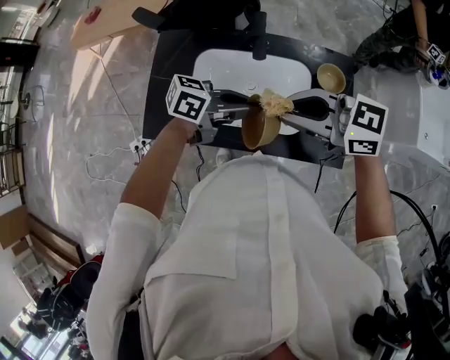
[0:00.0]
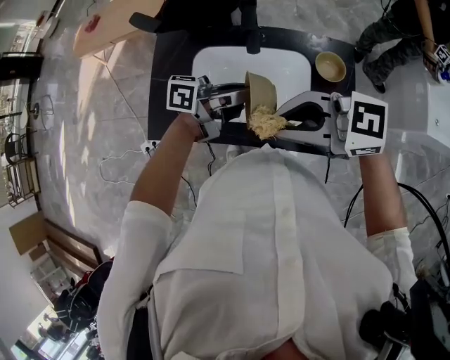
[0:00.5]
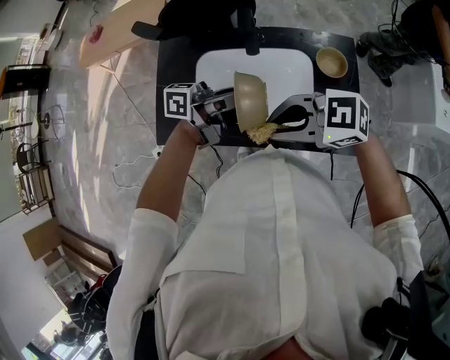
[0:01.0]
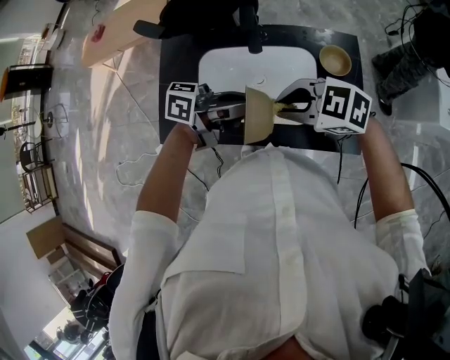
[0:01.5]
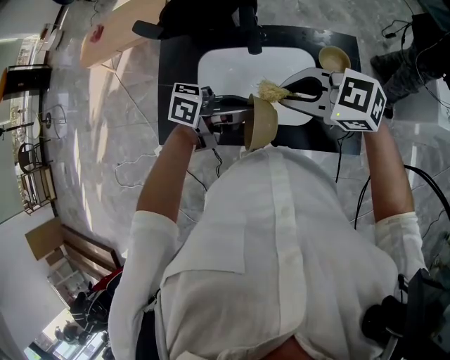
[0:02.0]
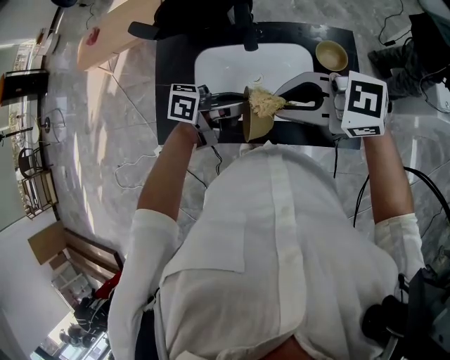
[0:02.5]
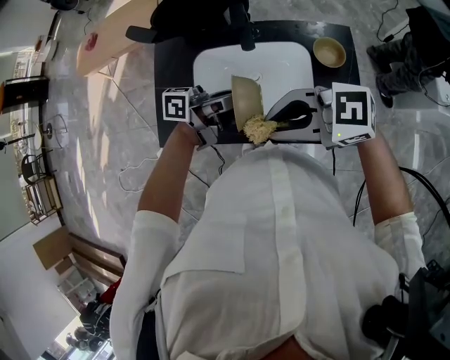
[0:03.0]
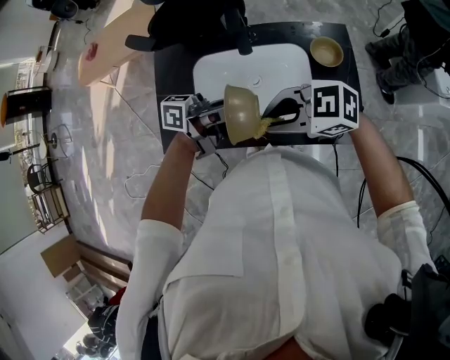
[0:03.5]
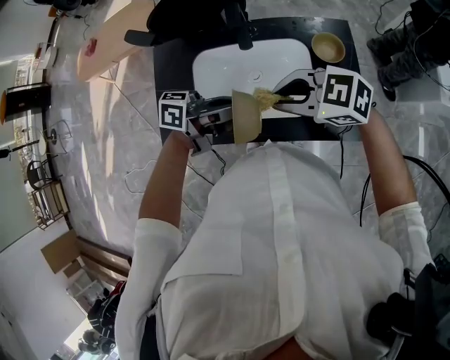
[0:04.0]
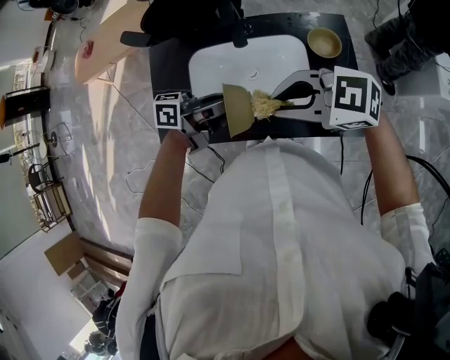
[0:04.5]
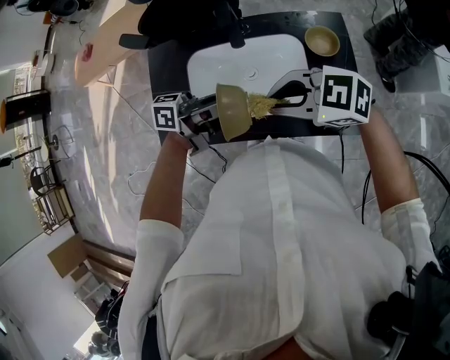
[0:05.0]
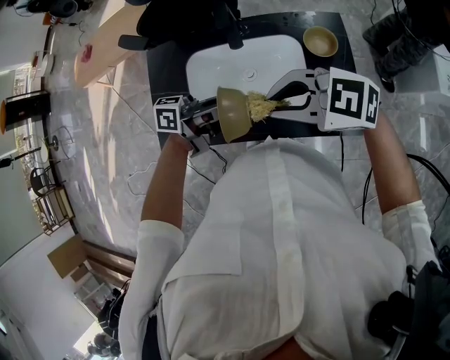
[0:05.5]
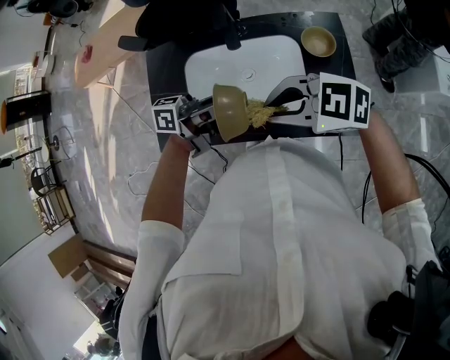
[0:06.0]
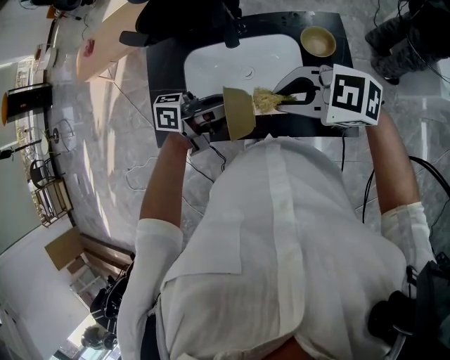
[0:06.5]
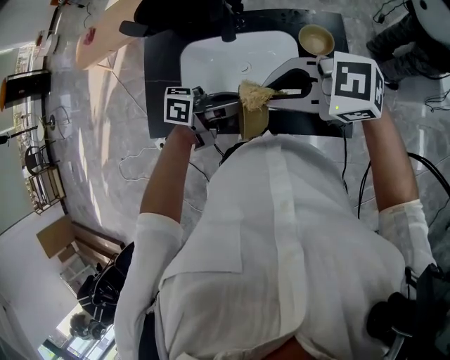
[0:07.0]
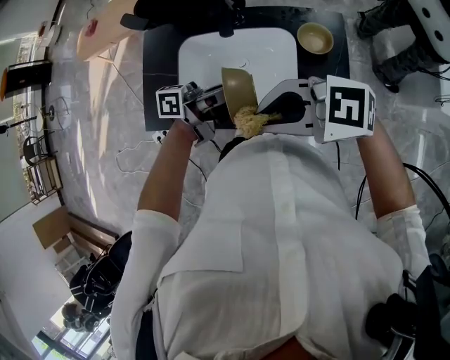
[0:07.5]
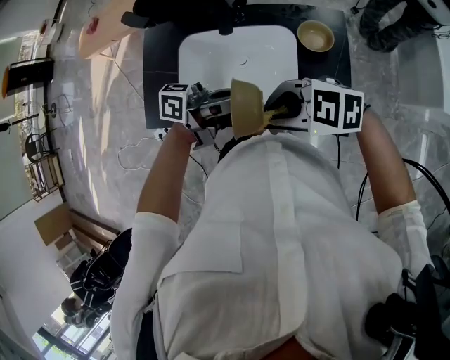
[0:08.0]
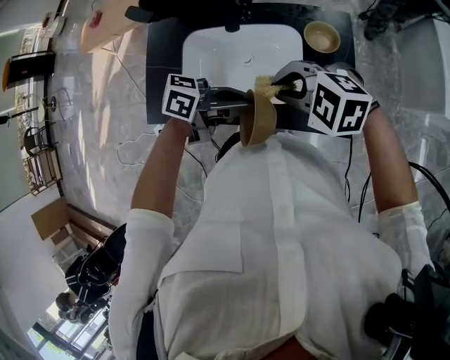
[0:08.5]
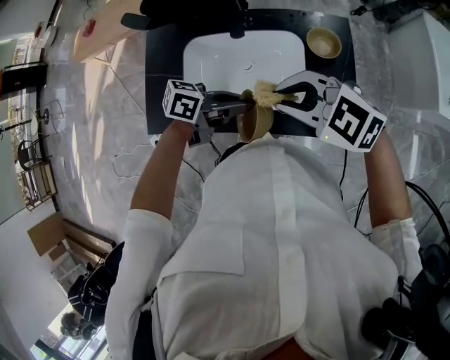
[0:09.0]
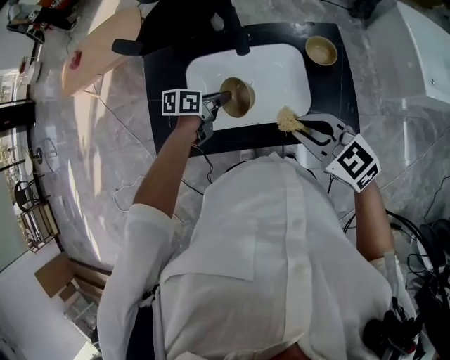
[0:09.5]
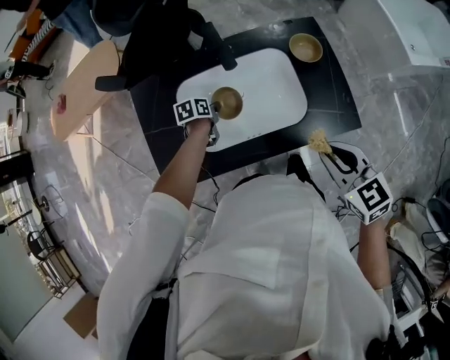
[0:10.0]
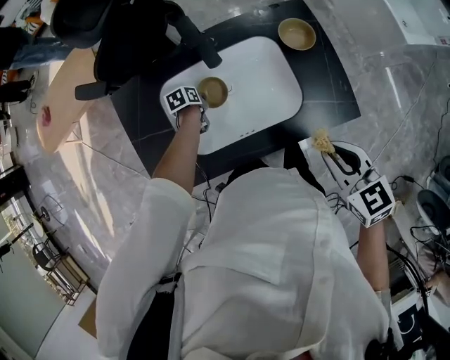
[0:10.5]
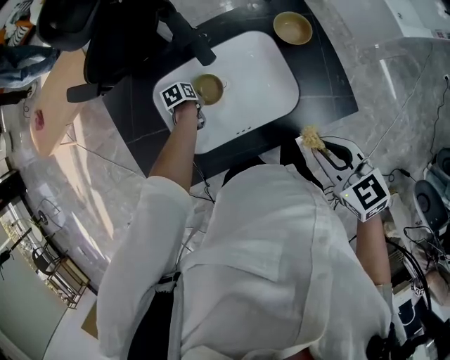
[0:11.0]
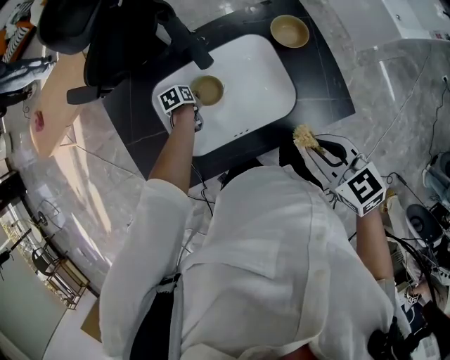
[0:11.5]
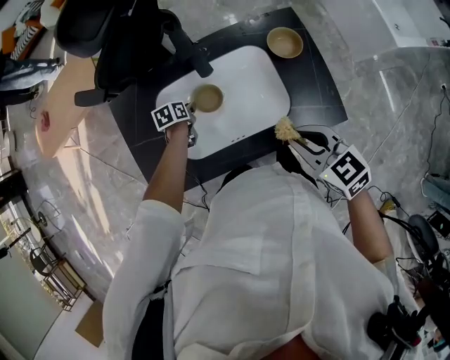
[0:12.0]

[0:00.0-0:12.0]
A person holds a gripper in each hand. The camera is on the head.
0:04.0 to 0:06.0: The grippers make only small movements.
0:06.0 to 0:08.0: The left gripper ends up roughly 10 cm from where it was, while the right gripper moves about 10 cm.
0:08.0 to 0:10.0: The right gripper rotates roughly 80 degrees, while the left gripper shifts some 30 cm downward, and angles its fingers downward, by about 60 degrees.
0:10.0 to 0:12.0: The left gripper moves approximately 10 cm downward and comes back. The right gripper changes place by roughly 5 cm.

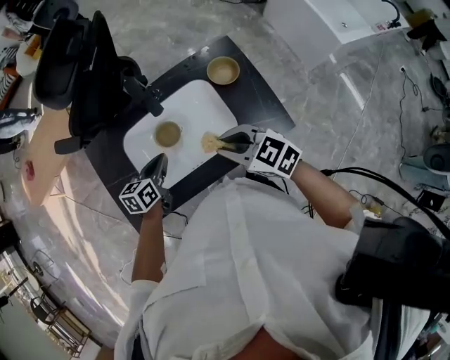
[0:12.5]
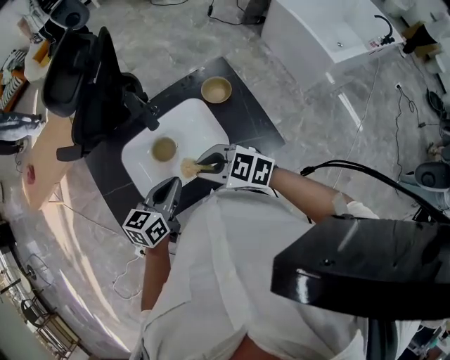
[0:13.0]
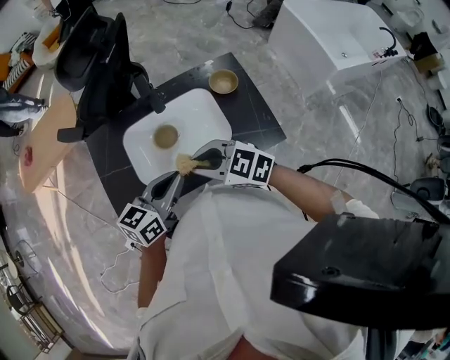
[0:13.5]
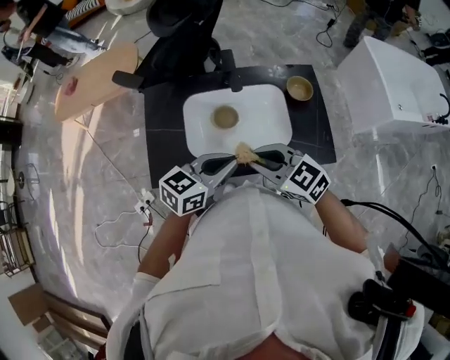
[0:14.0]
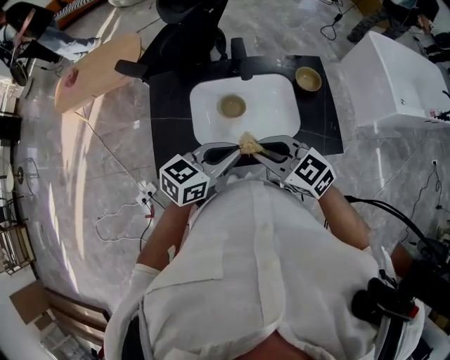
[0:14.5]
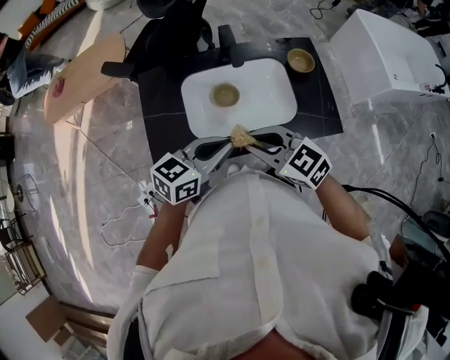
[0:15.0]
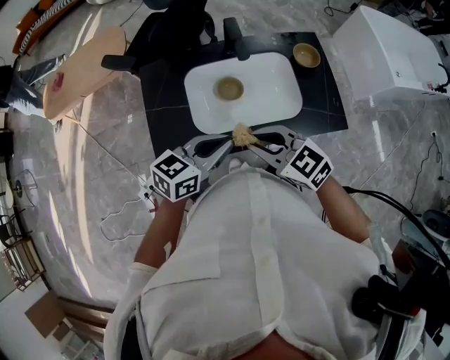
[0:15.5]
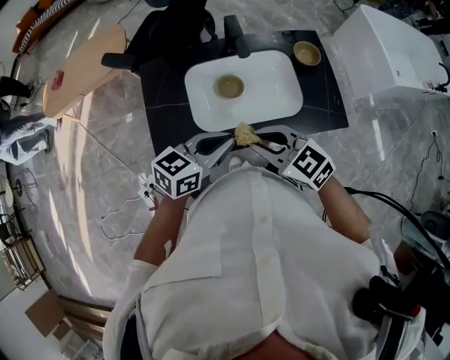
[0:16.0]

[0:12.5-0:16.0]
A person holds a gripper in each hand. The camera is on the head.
0:12.5 to 0:14.5: The left gripper goes some 20 cm upward and backward, and swivels roughly 30 degrees, while the right gripper is displaced to the left and backward by approximately 15 cm.
0:14.5 to 0:16.0: The grippers make only small movements.

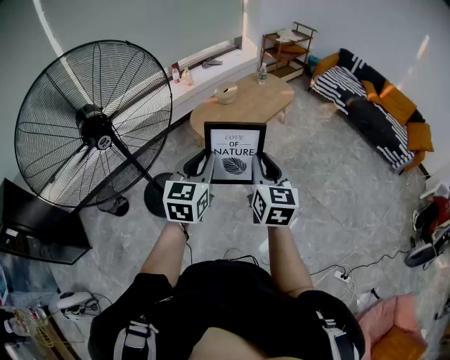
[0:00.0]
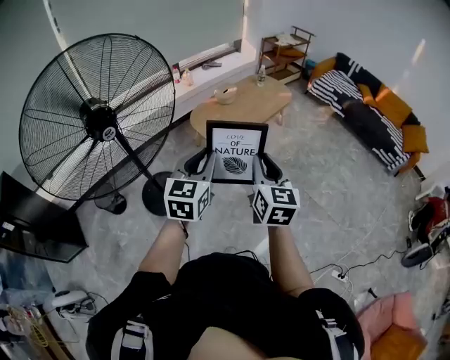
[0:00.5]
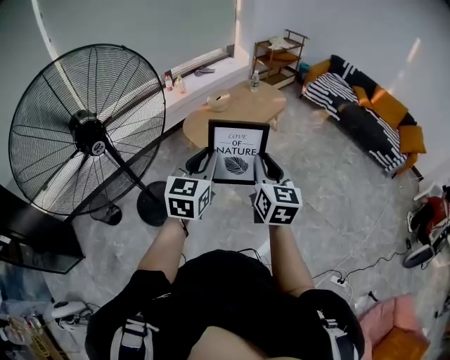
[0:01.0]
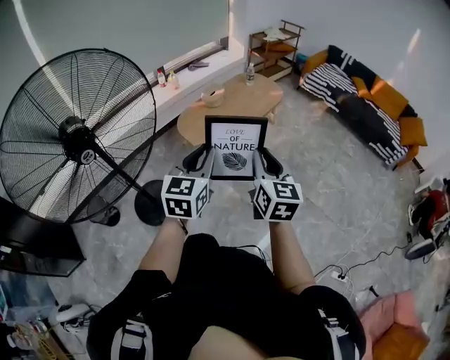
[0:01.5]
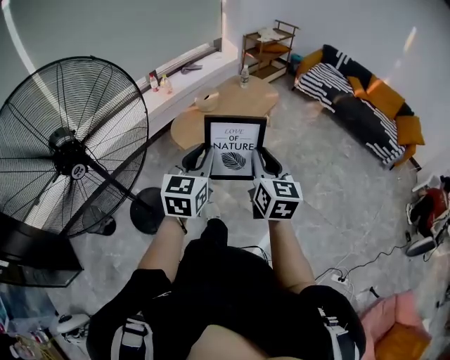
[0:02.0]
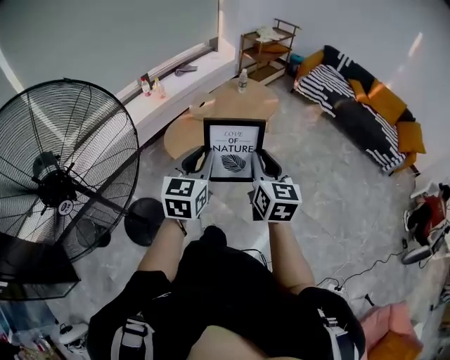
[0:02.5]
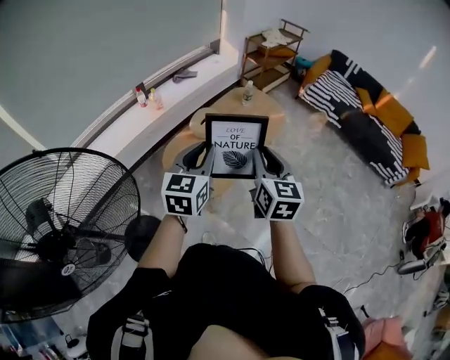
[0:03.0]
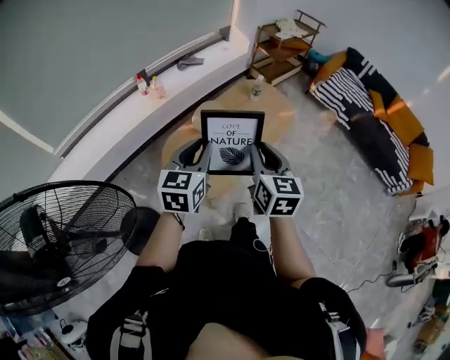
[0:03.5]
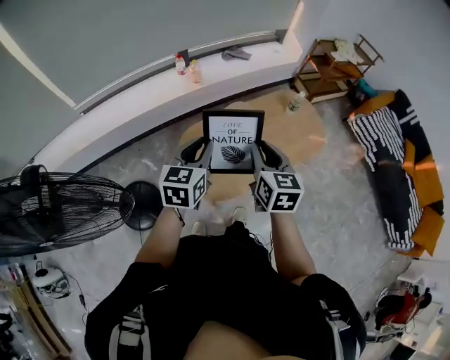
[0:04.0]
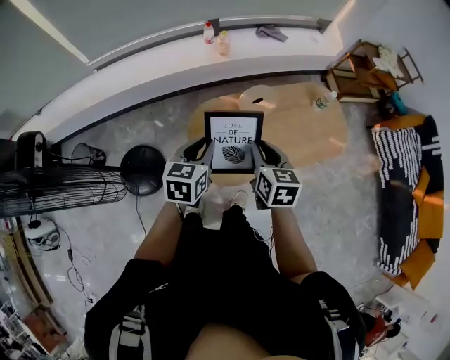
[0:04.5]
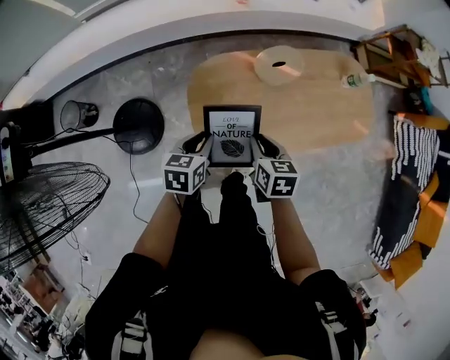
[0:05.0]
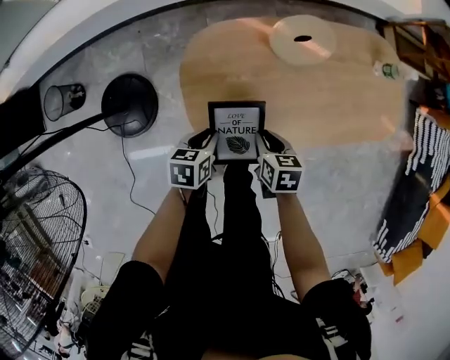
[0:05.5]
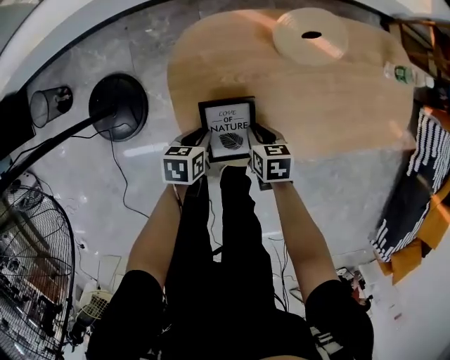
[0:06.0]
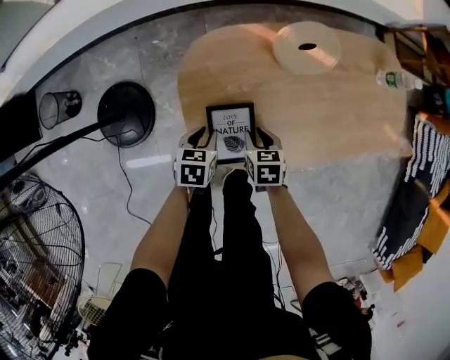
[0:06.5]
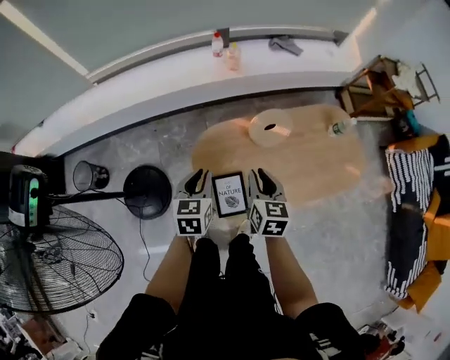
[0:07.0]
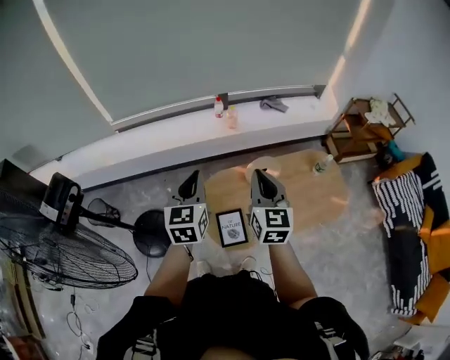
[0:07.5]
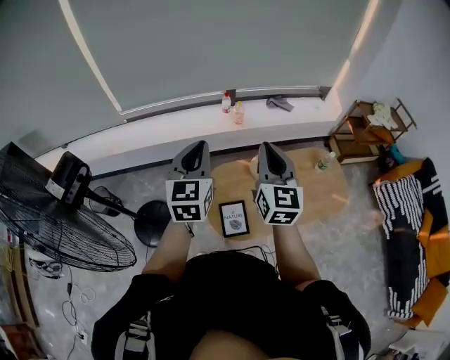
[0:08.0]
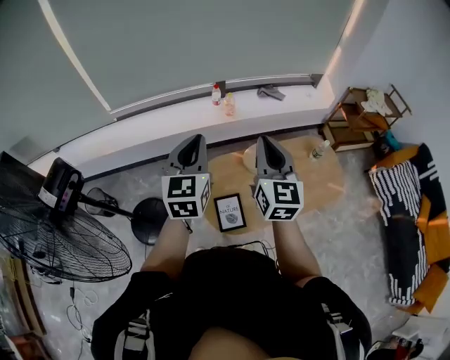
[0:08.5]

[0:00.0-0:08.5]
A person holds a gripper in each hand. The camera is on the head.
0:00.0 to 0:02.0: The two grippers go approximately 10 cm forward.
0:02.0 to 0:04.0: The pair of grippers is taken forward, about 60 cm. The right gripper rotates about 30 degrees; the left gripper swivels roughly 30 degrees.
0:04.0 to 0:06.5: Both grippers travel together downward, about 60 cm. The left gripper tilts its fingers some 40 degrees downward. Meanwhile the right gripper tilts its fingers roughly 40 degrees downward.
0:06.5 to 0:08.5: Both grippers travel together upward, some 70 cm. The left gripper angles its fingers upward, by some 50 degrees, and closes its fingers, while the right gripper tilts its fingers roughly 60 degrees upward, and closes its fingers.

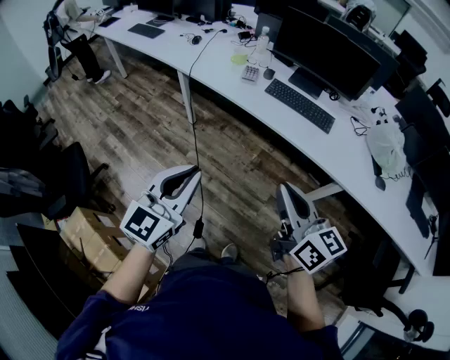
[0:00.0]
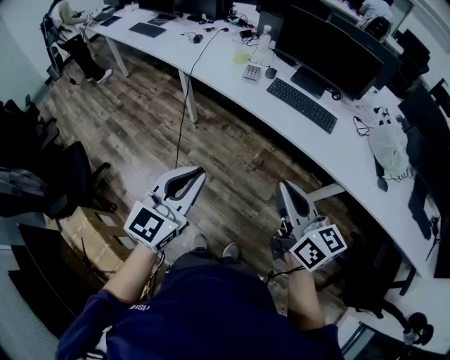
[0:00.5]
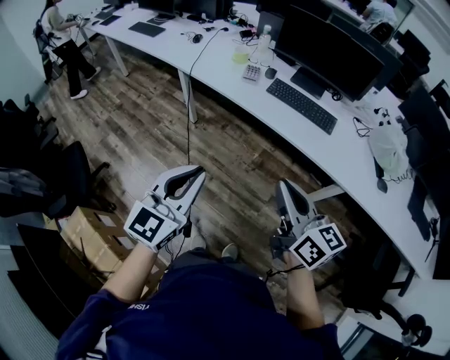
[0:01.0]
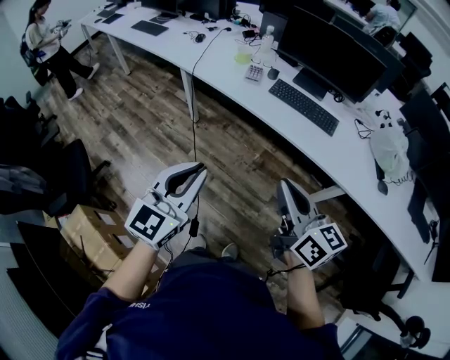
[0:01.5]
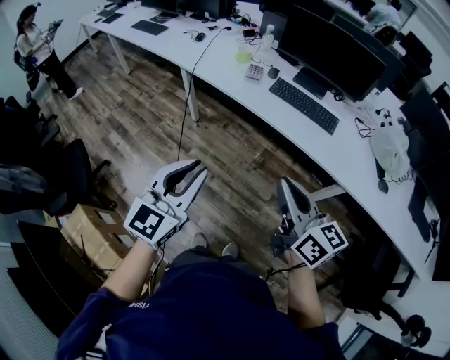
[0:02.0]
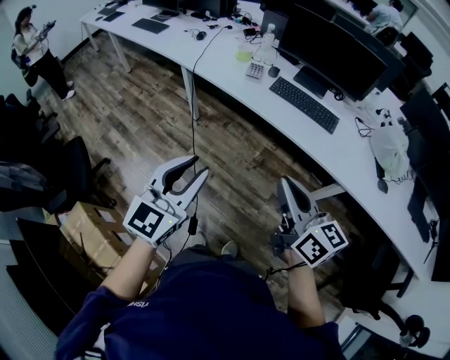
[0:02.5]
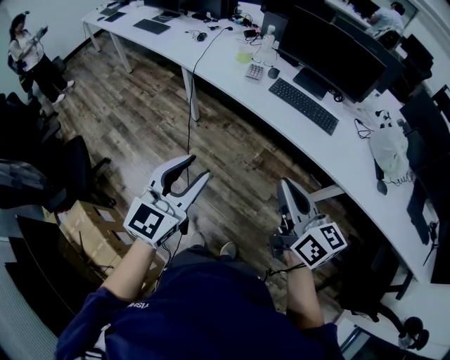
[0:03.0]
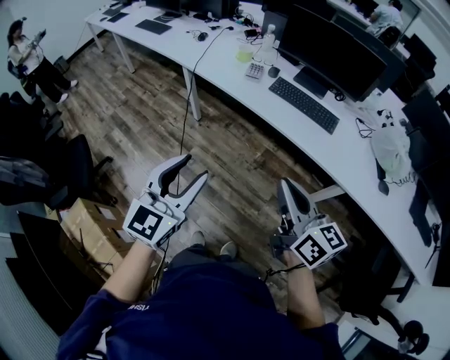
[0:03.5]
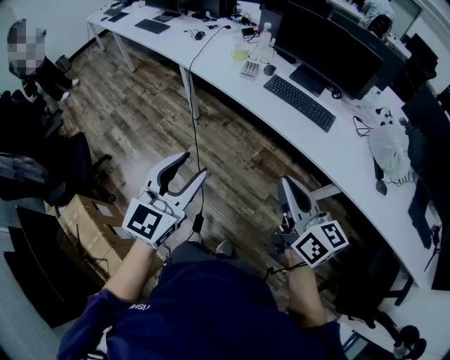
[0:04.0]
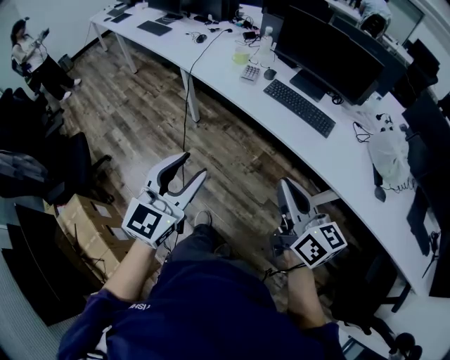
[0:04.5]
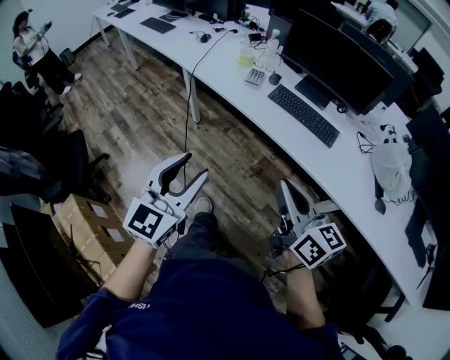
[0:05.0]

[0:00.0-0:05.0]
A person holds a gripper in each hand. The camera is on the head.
0:00.0 to 0:02.5: The left gripper opens.
0:02.5 to 0:05.0: The left gripper changes place by roughly 5 cm; the right gripper moves to the right, some 5 cm.
